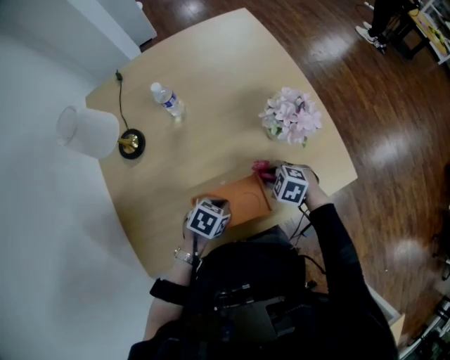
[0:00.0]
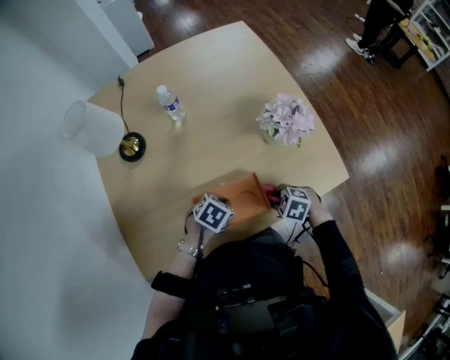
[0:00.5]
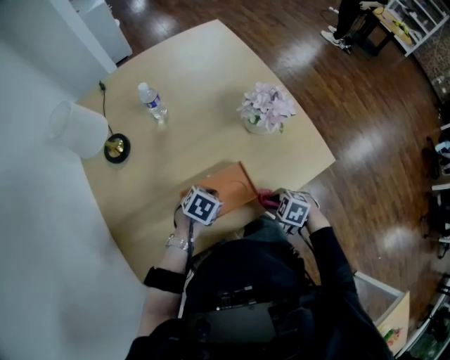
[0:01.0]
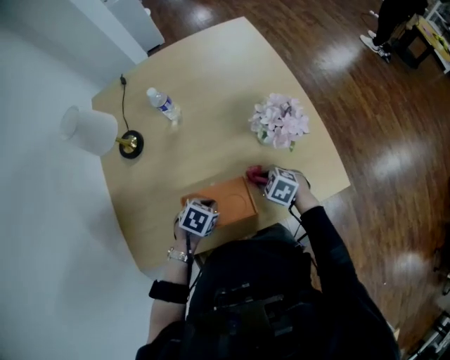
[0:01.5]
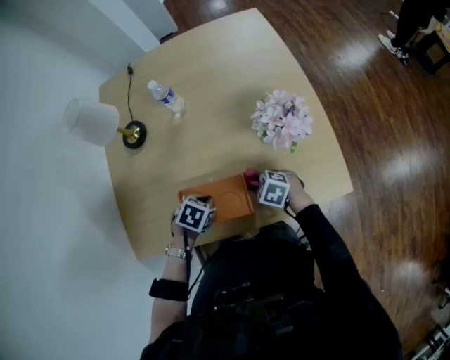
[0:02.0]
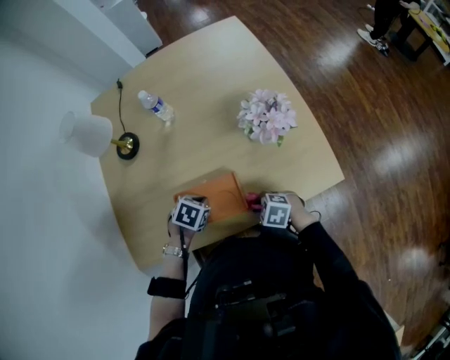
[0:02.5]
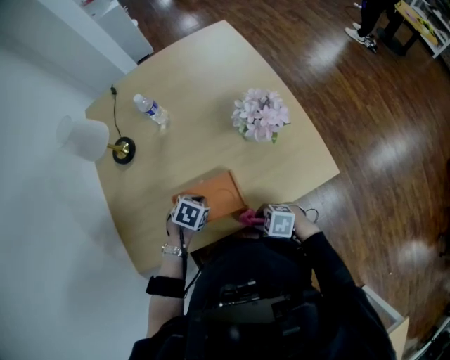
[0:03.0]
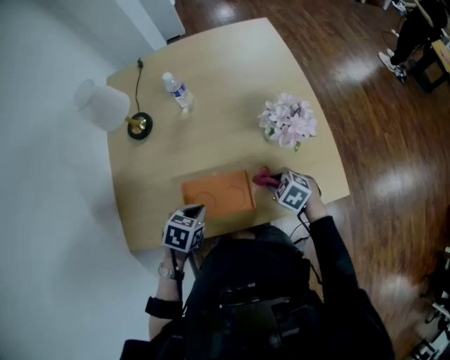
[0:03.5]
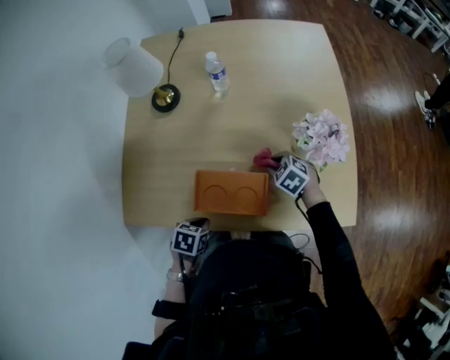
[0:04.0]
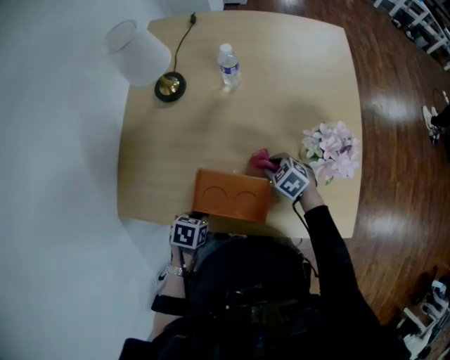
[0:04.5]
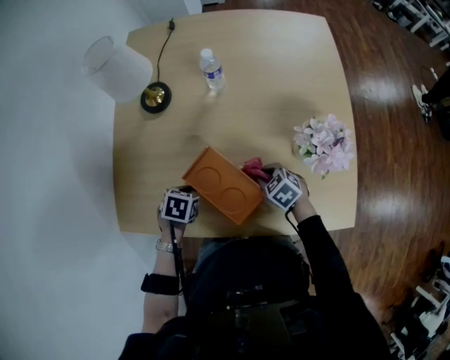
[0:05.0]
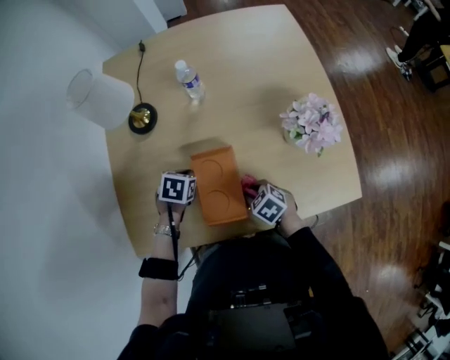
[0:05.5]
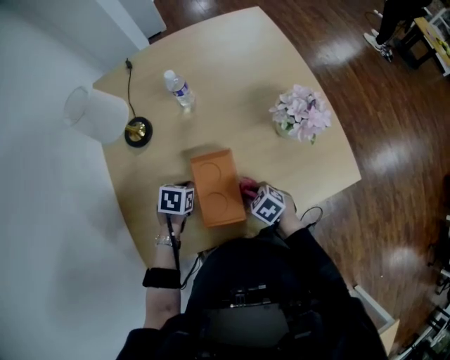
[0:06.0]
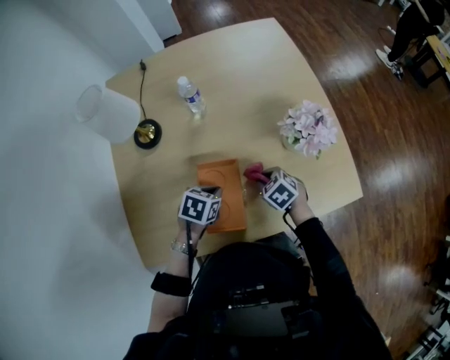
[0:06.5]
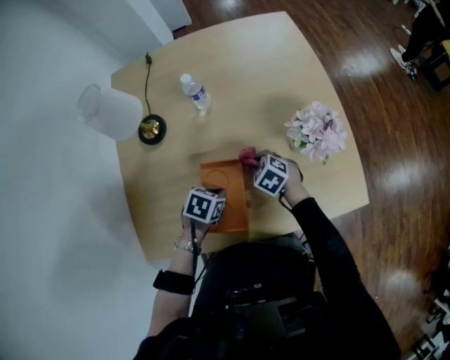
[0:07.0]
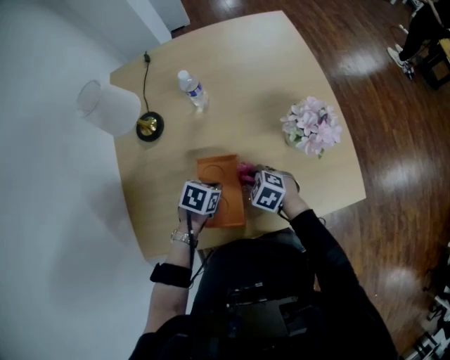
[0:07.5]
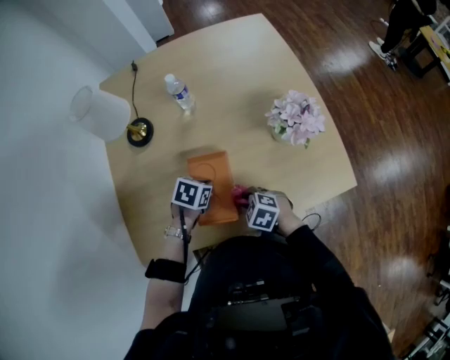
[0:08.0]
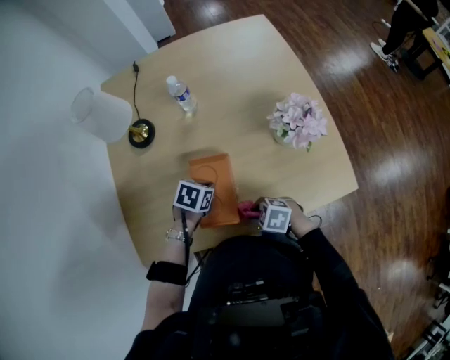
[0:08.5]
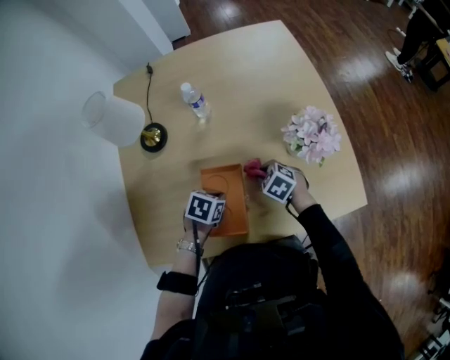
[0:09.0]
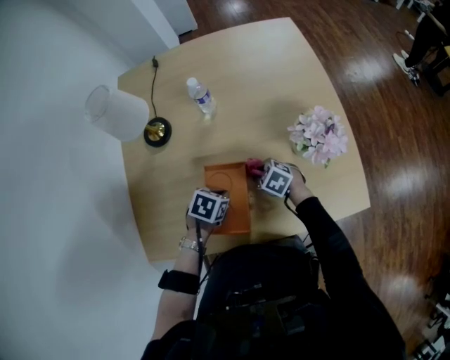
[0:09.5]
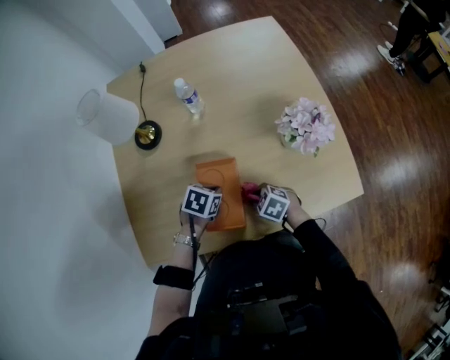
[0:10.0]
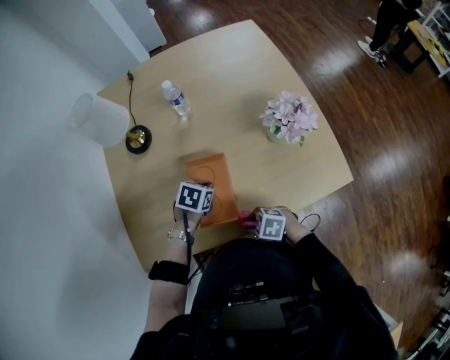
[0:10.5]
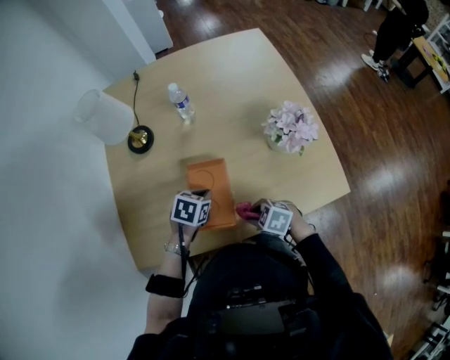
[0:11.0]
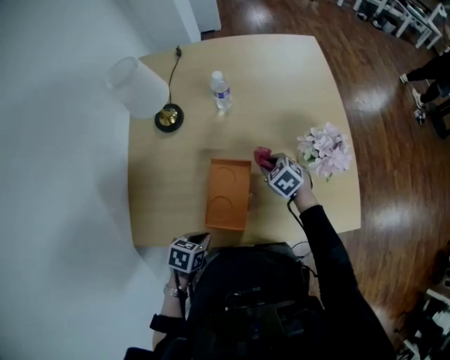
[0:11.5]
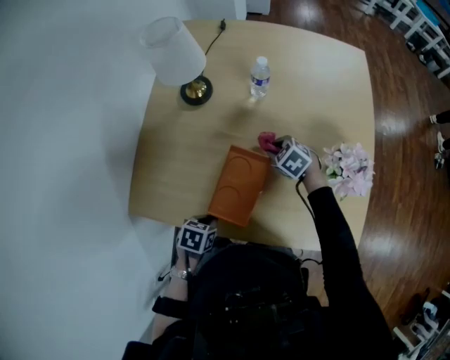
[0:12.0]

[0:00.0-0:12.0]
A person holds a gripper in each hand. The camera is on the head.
0:02.0 to 0:04.0: The left gripper moves roughly 5 cm upward and comes back, and rotates approximately 30 degrees.
0:04.0 to 0:06.0: The left gripper is displaced forward by roughly 20 cm. The right gripper travels to the left and backward by about 15 cm, and swivels roughly 30 degrees.
0:06.0 to 0:08.0: The left gripper moves about 10 cm. The right gripper changes its angle by roughly 20 degrees.
0:10.0 to 0:12.0: The left gripper ends up approximately 15 cm from where it was, and turns by approximately 30 degrees. Meanwhile the right gripper changes place by approximately 20 cm.

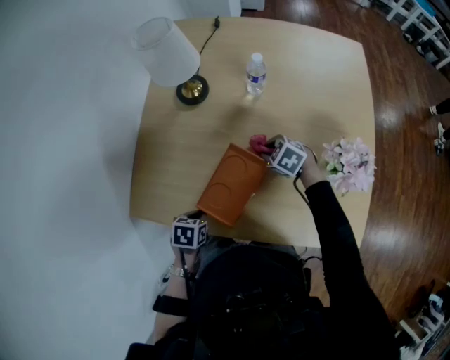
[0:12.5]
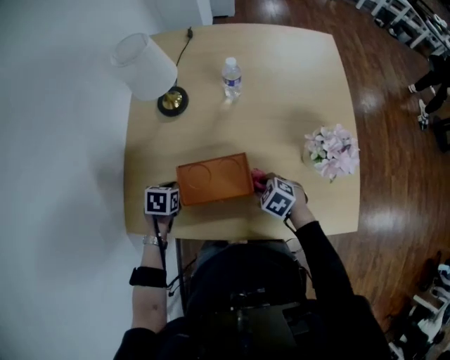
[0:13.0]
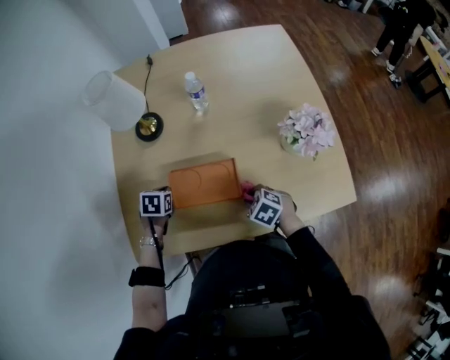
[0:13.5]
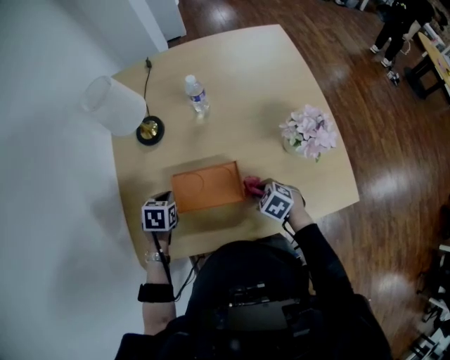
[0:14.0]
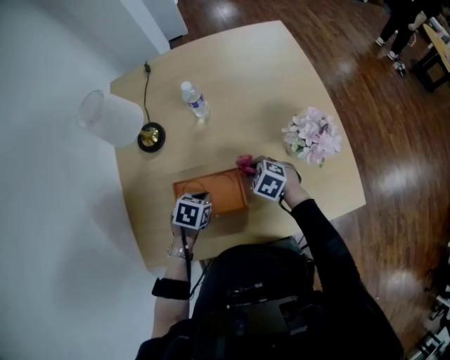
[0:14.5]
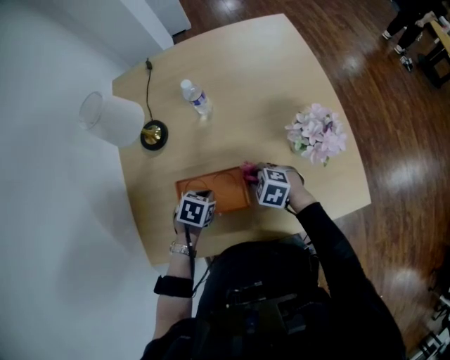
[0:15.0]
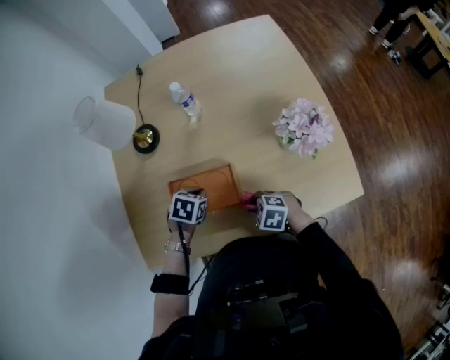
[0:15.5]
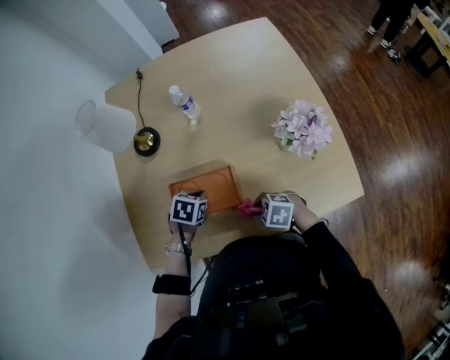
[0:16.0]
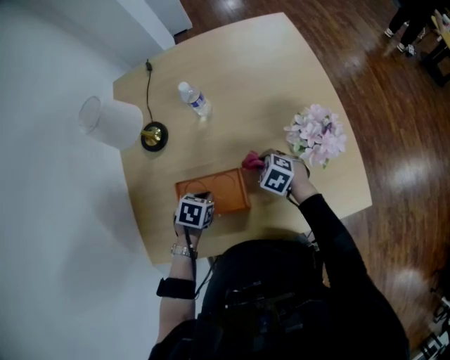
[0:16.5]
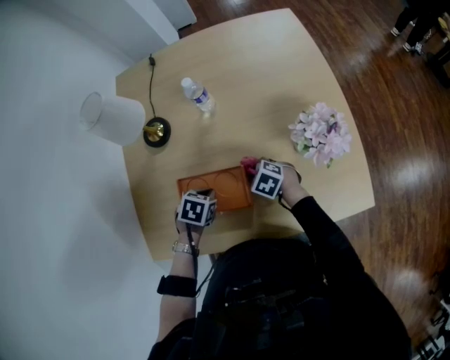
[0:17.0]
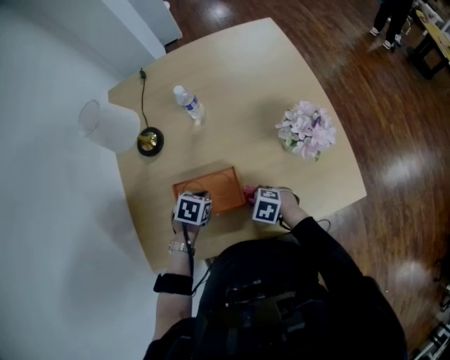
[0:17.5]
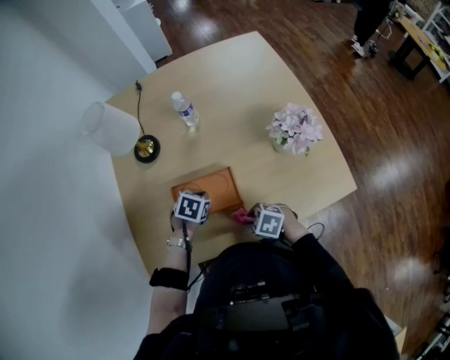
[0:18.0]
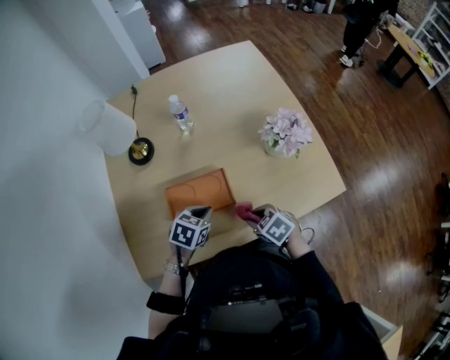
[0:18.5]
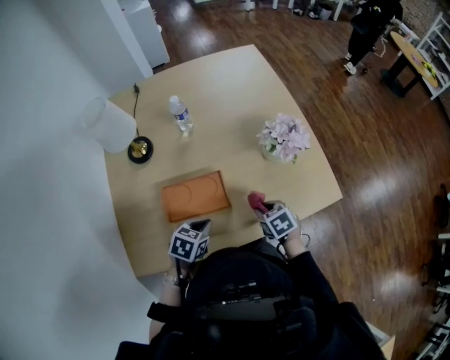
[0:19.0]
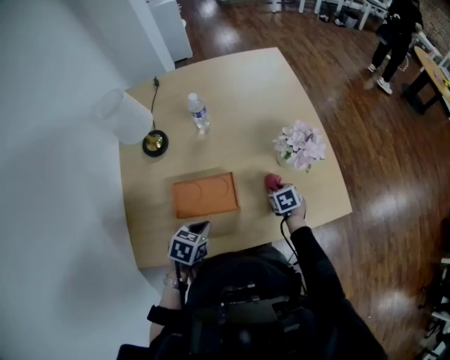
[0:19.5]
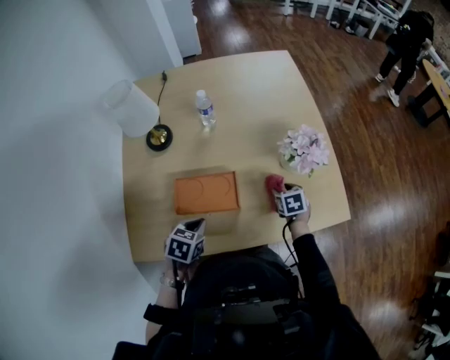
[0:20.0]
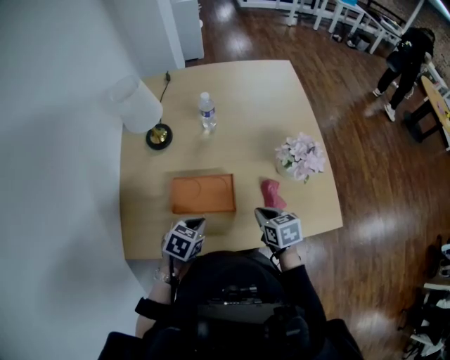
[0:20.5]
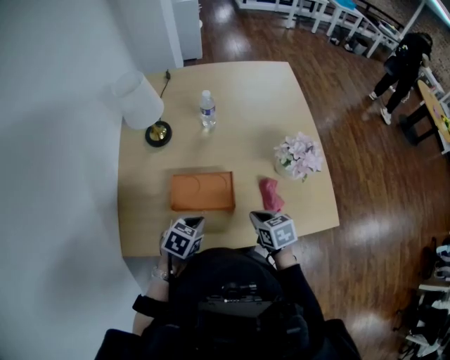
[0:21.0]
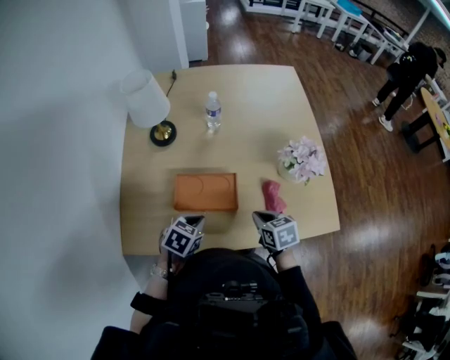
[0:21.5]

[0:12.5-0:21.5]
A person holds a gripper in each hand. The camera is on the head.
0:12.5 to 0:14.5: The right gripper swivels approximately 20 degrees. Meanwhile the left gripper moves roughly 15 cm, and rotates about 30 degrees.
0:17.0 to 0:19.5: The left gripper shifts by approximately 10 cm. Meanwhile the right gripper moves roughly 10 cm upward and comes back, and turns by some 50 degrees.
0:19.5 to 0:21.5: The right gripper travels upward, backward and to the left by some 15 cm, and opens and closes again.

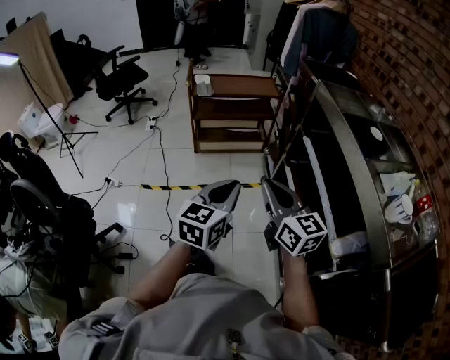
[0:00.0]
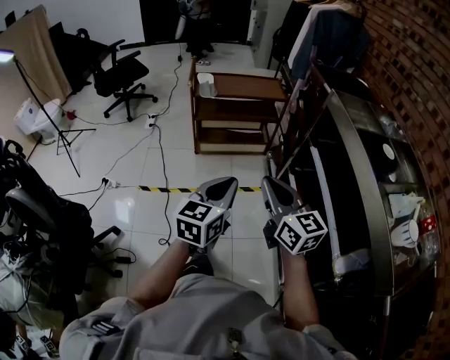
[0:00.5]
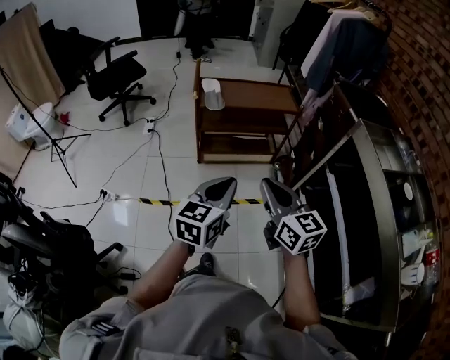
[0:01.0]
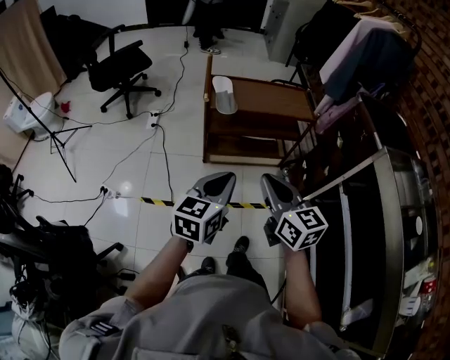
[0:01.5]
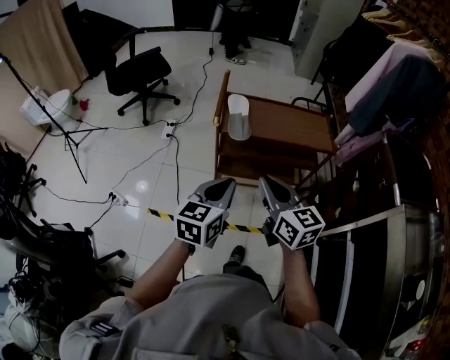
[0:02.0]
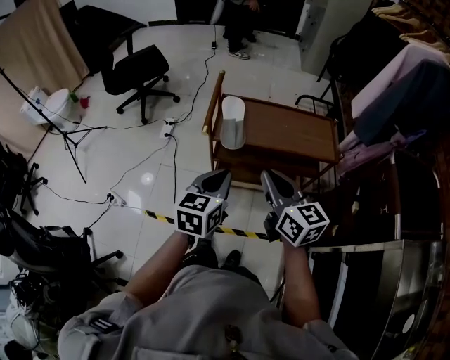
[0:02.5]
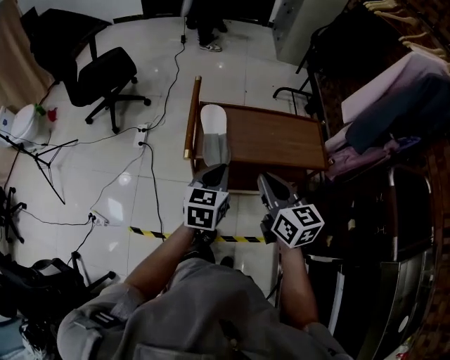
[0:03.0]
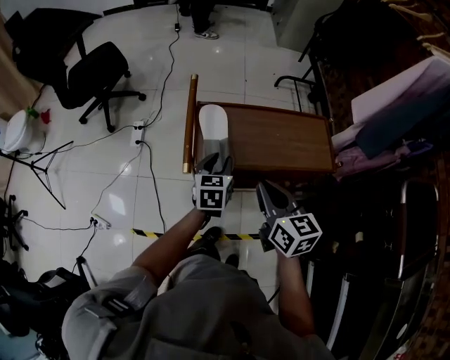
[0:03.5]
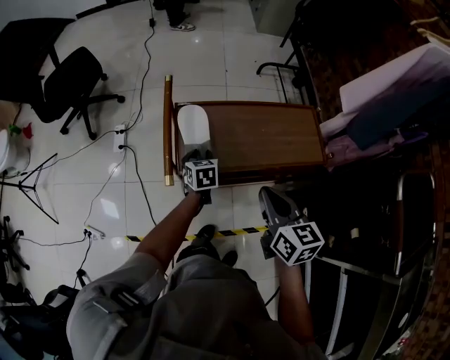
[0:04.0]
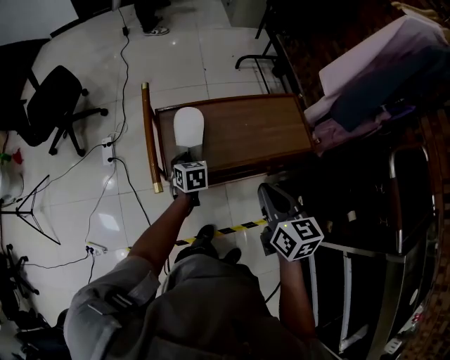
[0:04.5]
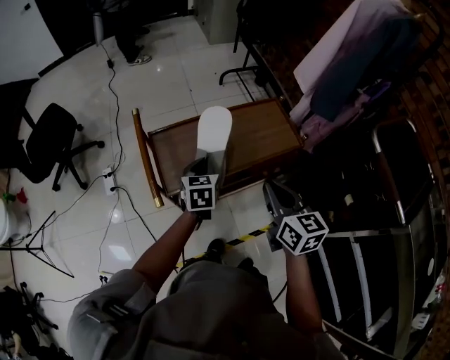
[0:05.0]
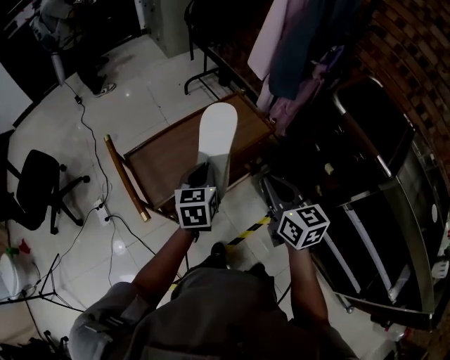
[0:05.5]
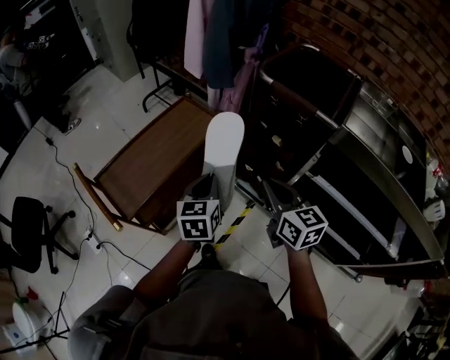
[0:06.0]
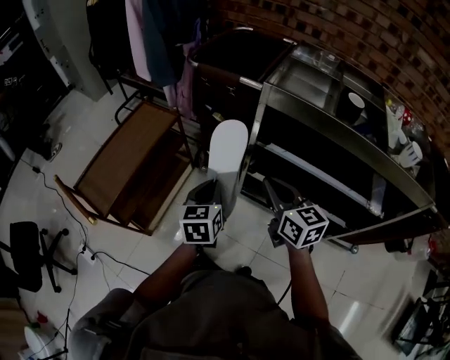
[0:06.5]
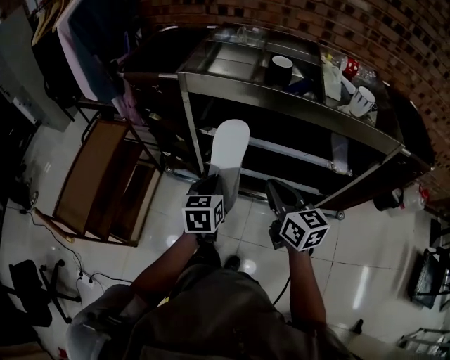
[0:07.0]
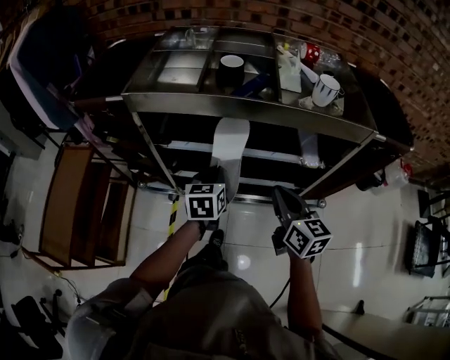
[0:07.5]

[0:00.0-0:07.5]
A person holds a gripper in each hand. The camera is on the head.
0:00.0 to 0:02.0: Both grippers are carried forward, about 50 cm.
0:02.0 to 0:04.0: The left gripper moves forward and downward, some 50 cm, rotates some 30 degrees, and opens up; the right gripper travels forward by approximately 25 cm, and rotates some 20 degrees.
0:04.0 to 0:05.5: The right gripper moves roughly 15 cm, and swivels roughly 30 degrees; the left gripper shifts roughly 20 cm upward, changes its angle by some 40 degrees, and closes its fingers.
0:05.5 to 0:07.5: The pair of grippers is taken approximately 70 cm. The right gripper swivels approximately 60 degrees. The left gripper changes its angle by approximately 50 degrees.
